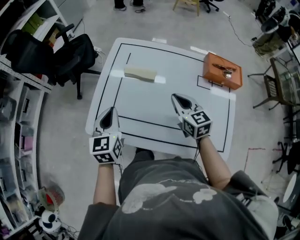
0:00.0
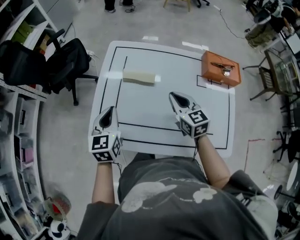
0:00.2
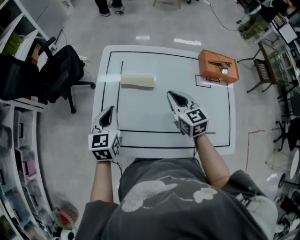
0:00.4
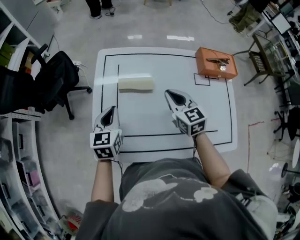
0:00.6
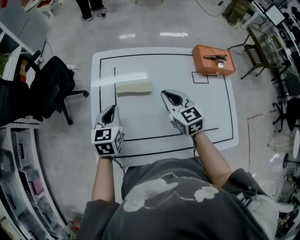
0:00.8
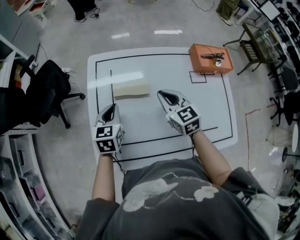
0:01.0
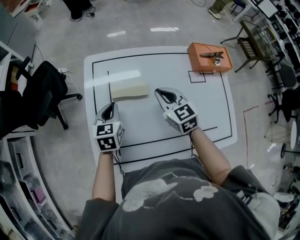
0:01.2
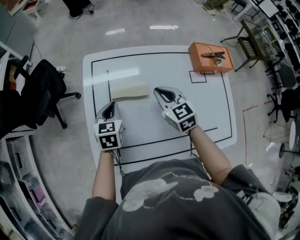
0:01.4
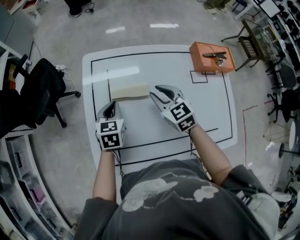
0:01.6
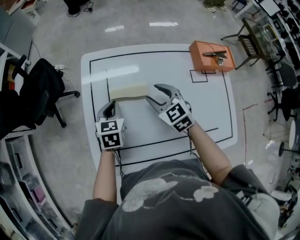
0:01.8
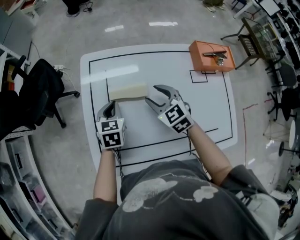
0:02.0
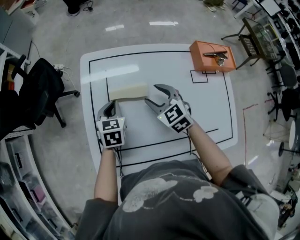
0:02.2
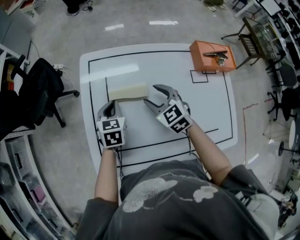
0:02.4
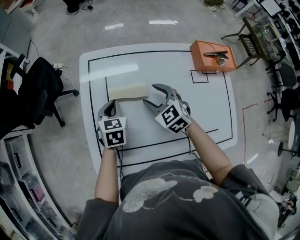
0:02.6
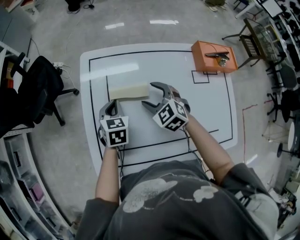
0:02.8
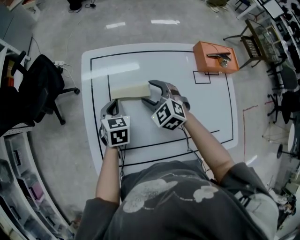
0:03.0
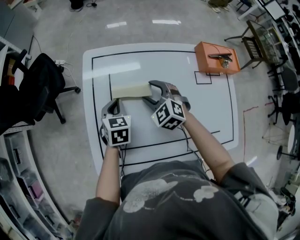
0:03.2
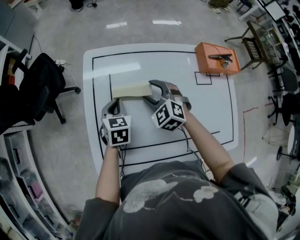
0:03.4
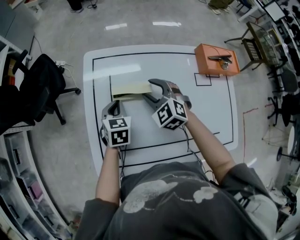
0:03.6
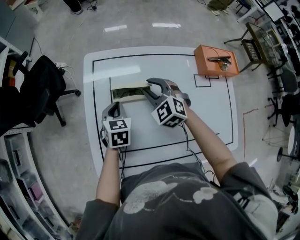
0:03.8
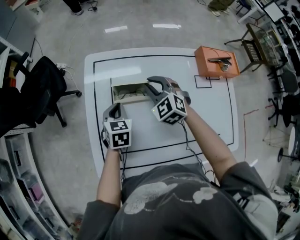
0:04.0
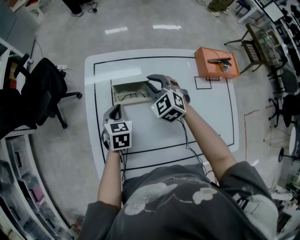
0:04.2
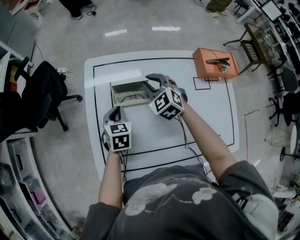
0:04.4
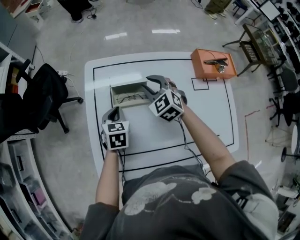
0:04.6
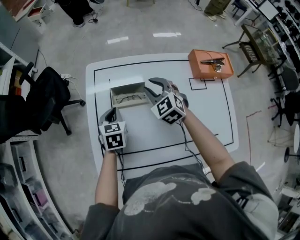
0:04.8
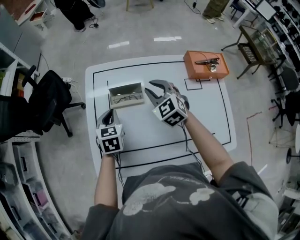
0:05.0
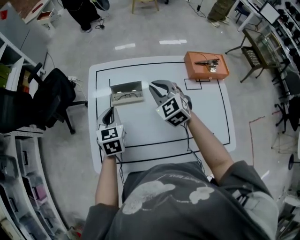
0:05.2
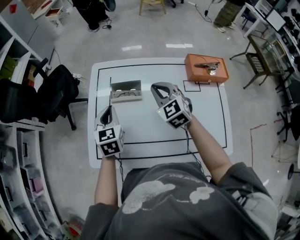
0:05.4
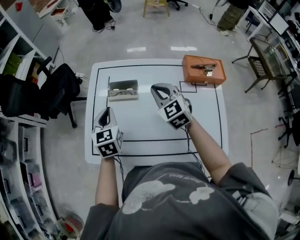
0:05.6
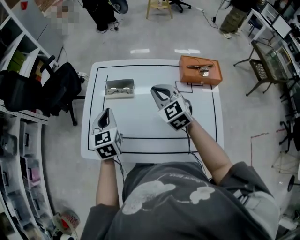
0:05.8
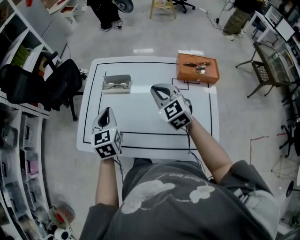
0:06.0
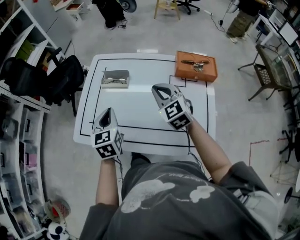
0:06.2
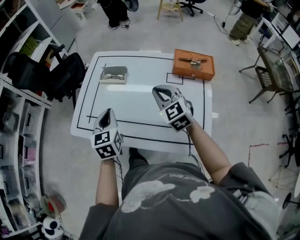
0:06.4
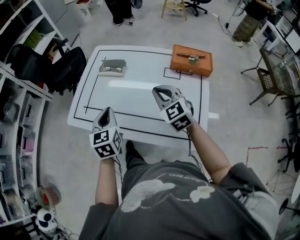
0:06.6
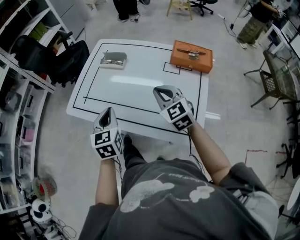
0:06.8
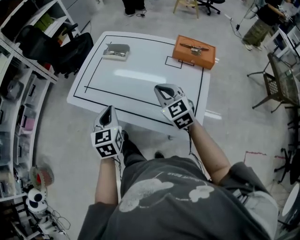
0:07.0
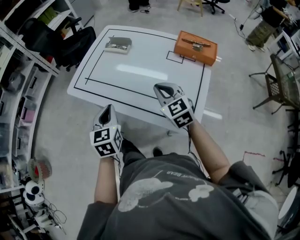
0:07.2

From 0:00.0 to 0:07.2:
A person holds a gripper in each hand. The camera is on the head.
From 0:00.0 to 0:01.4: The right gripper moves forward, about 10 cm. Meanwhile the left gripper moves forward and downward, some 20 cm, and turns by some 30 degrees.
From 0:01.4 to 0:02.8: The right gripper moves downward, roughly 5 cm, rotates some 30 degrees, and opens.
From 0:02.8 to 0:04.4: The right gripper shifts some 10 cm forward, and closes its fingers.
From 0:04.4 to 0:05.8: The left gripper heads upward and backward, covering some 20 cm, and changes its angle by some 30 degrees. Meanwhile the right gripper shifts some 20 cm backward, upward and to the right.
From 0:05.8 to 0:07.2: The two grippers go roughly 25 cm backward.

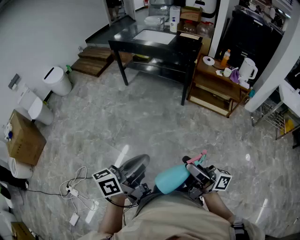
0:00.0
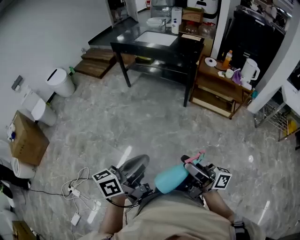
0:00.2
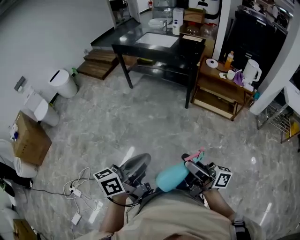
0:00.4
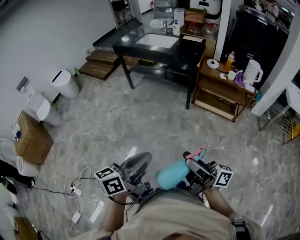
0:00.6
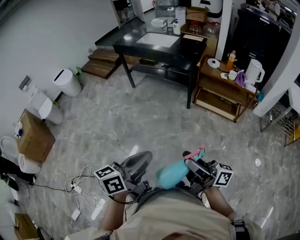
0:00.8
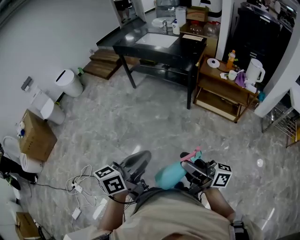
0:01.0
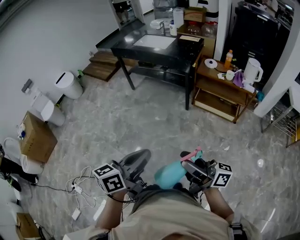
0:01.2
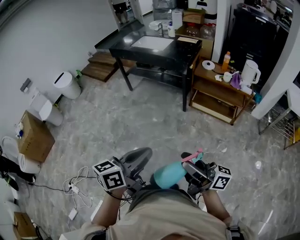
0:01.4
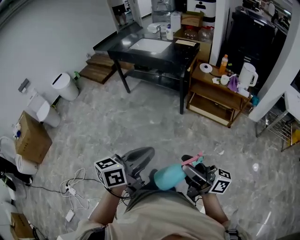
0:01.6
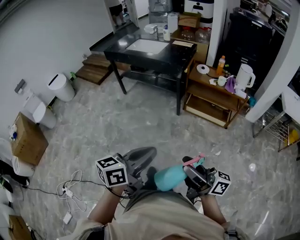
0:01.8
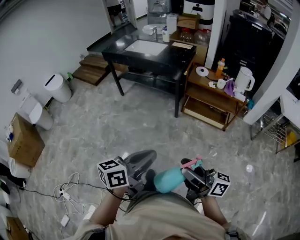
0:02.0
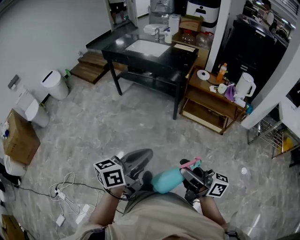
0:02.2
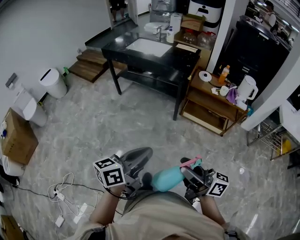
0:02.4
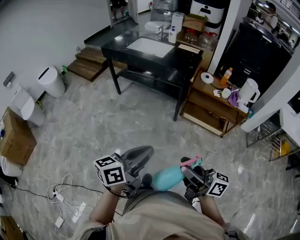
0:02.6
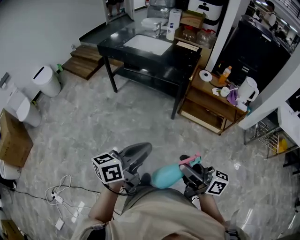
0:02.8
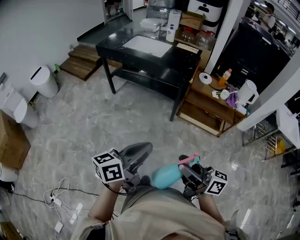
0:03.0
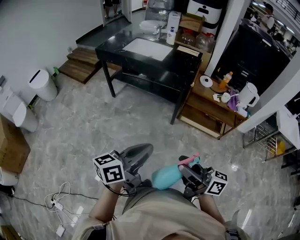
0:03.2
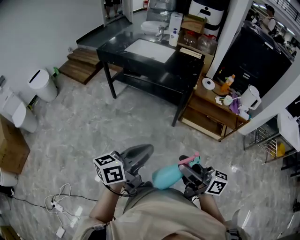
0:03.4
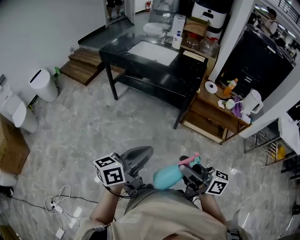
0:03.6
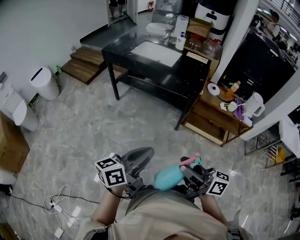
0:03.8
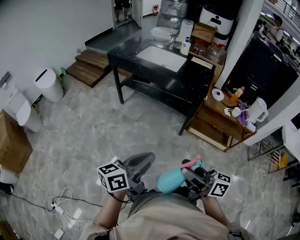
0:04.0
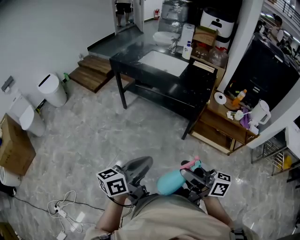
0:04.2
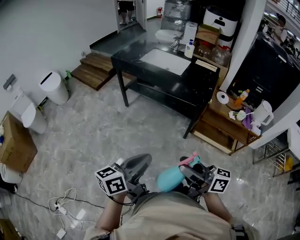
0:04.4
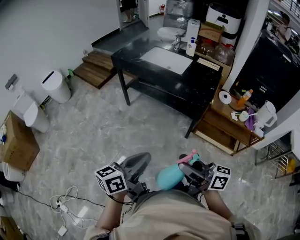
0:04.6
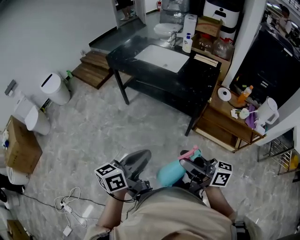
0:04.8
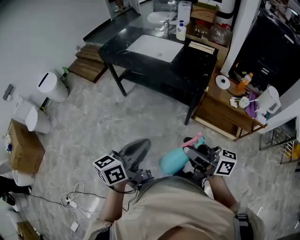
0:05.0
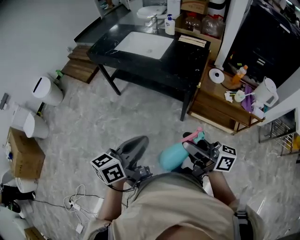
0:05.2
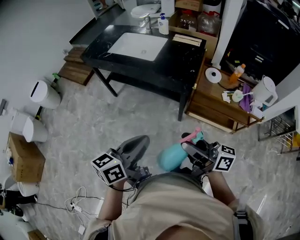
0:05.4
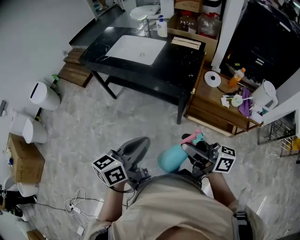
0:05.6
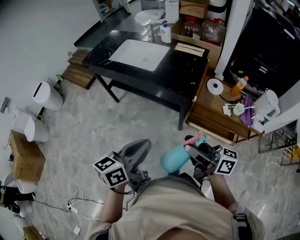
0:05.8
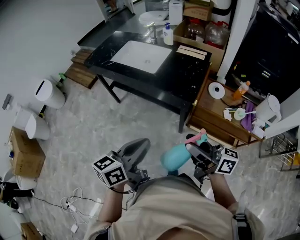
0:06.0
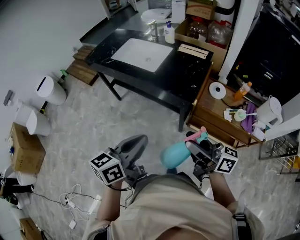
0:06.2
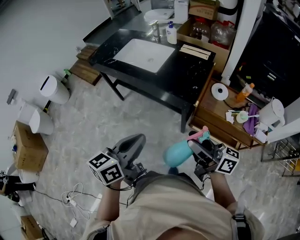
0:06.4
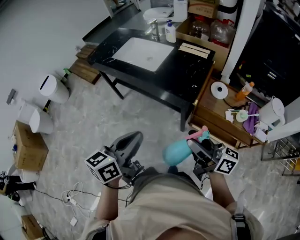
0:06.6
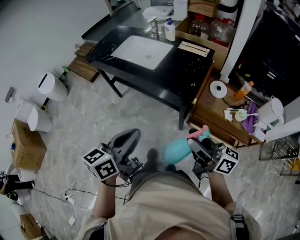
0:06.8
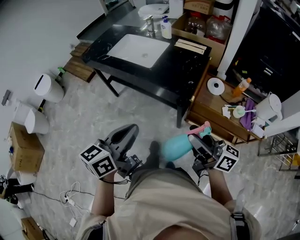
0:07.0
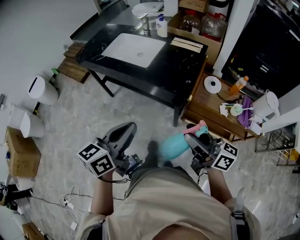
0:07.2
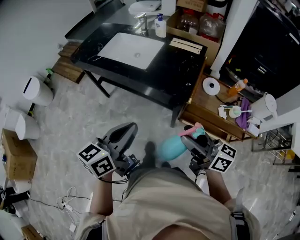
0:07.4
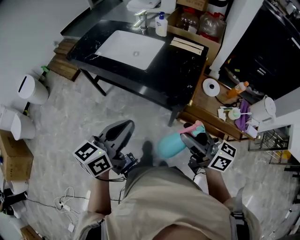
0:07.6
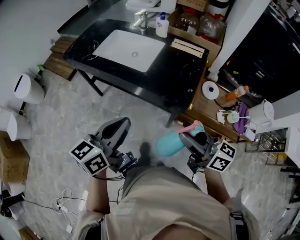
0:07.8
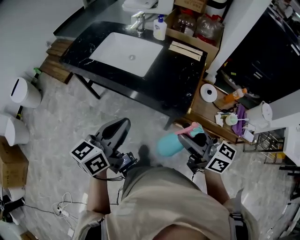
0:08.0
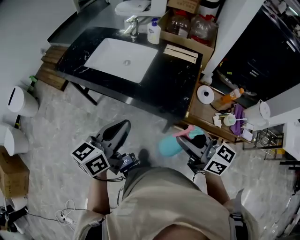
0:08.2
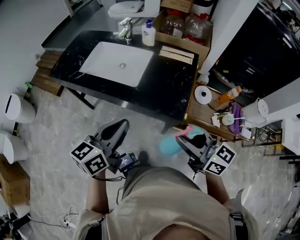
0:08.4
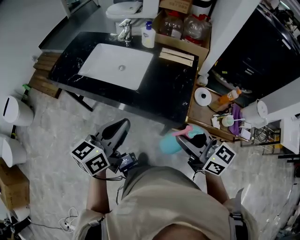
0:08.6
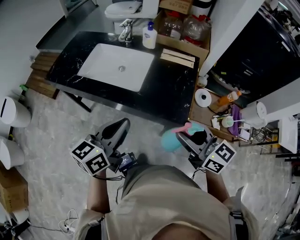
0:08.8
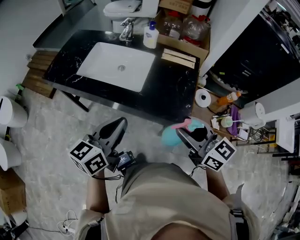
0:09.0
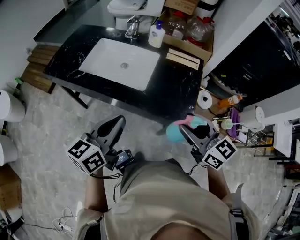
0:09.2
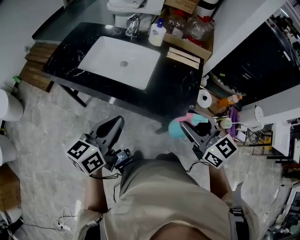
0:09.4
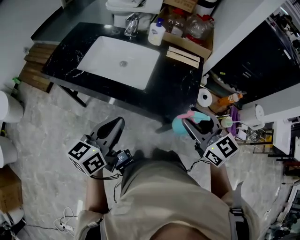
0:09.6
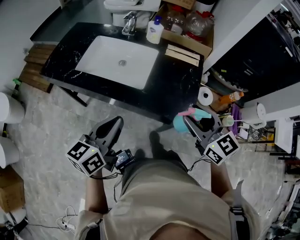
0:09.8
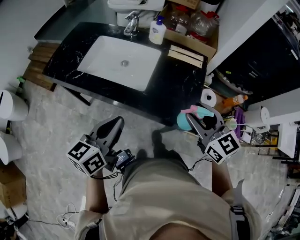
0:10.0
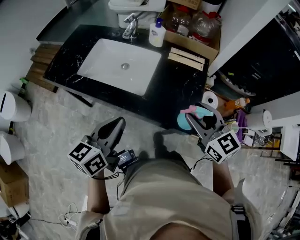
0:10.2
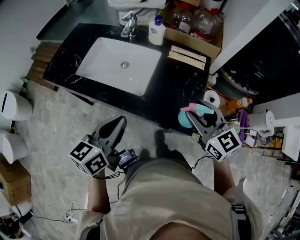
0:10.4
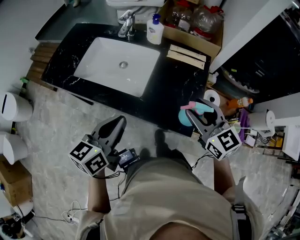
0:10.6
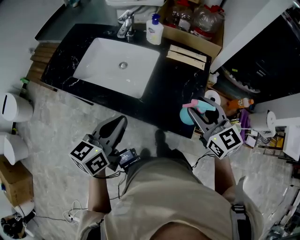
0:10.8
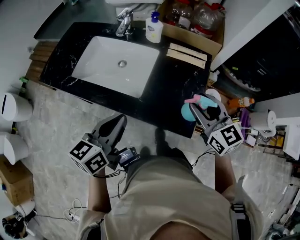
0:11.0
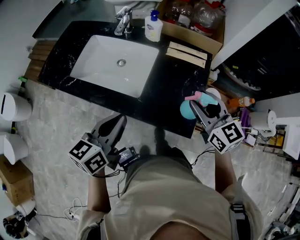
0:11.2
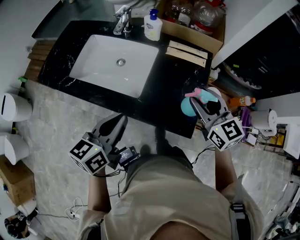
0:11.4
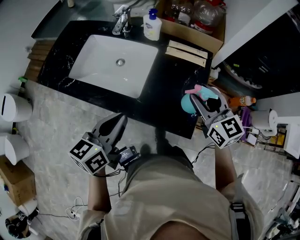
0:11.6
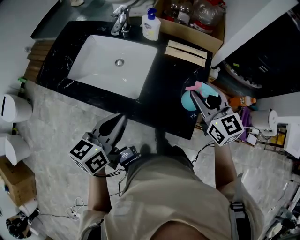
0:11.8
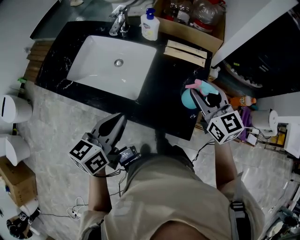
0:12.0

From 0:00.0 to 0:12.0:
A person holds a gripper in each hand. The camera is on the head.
From 0:00.0 to 0:01.6: Both grippers travel together to the right, roughly 15 cm.
From 0:01.6 to 0:03.0: The grippers both shift forward and to the left by about 20 cm.
From 0:03.0 to 0:04.4: The left gripper goes approximately 10 cm to the left and forward. The right gripper travels forward and to the left by roughly 15 cm.
From 0:04.4 to 0:06.0: Both grippers move to the right and forward, roughly 30 cm.
From 0:06.0 to 0:07.6: Both grippers move forward, roughly 10 cm.
From 0:07.6 to 0:09.0: The grippers both shift forward by some 15 cm. The right gripper turns by some 30 degrees.
From 0:09.0 to 0:10.4: The left gripper moves forward, approximately 5 cm; the right gripper heads forward, covering some 10 cm.
From 0:10.4 to 0:12.0: The left gripper is displaced forward by about 5 cm, while the right gripper shifts roughly 10 cm forward.

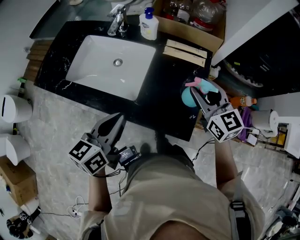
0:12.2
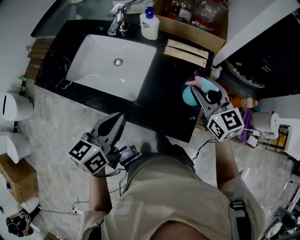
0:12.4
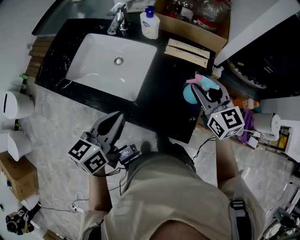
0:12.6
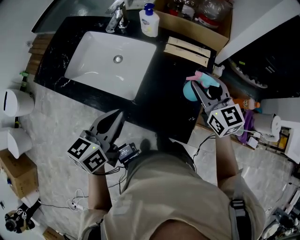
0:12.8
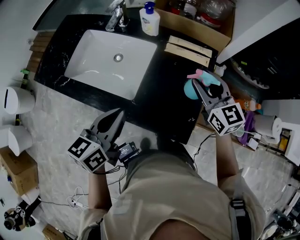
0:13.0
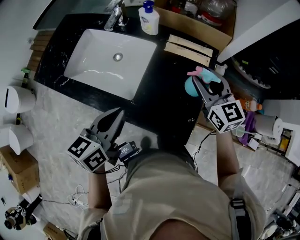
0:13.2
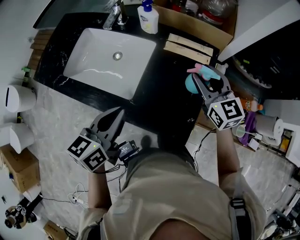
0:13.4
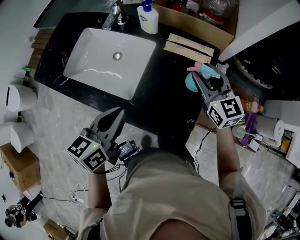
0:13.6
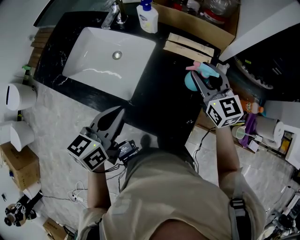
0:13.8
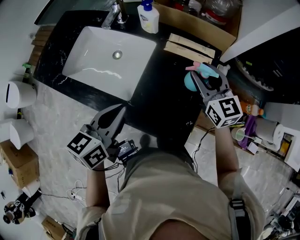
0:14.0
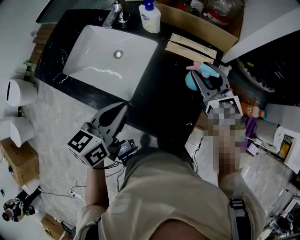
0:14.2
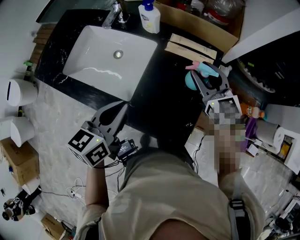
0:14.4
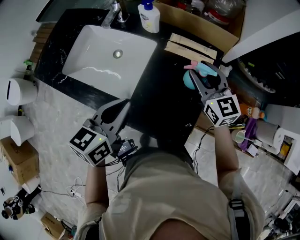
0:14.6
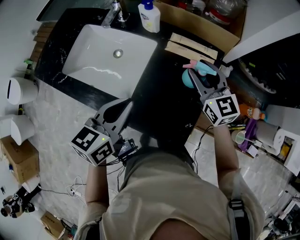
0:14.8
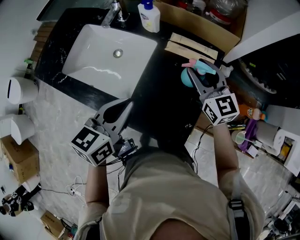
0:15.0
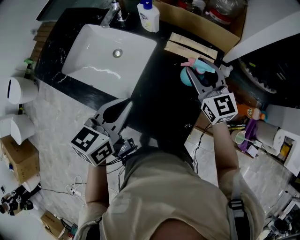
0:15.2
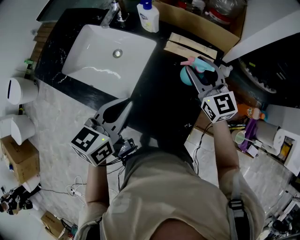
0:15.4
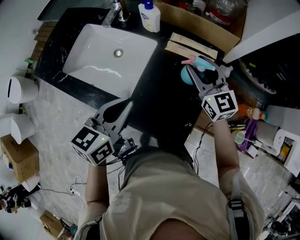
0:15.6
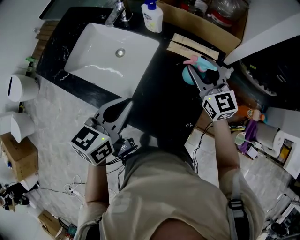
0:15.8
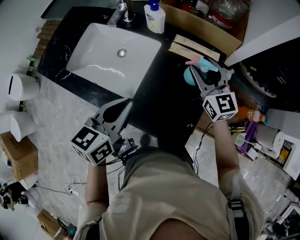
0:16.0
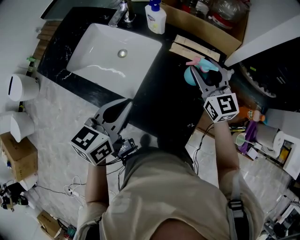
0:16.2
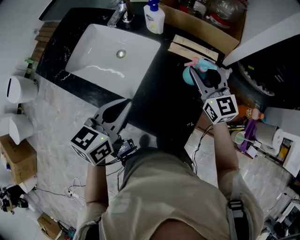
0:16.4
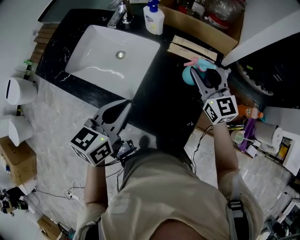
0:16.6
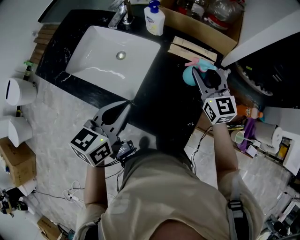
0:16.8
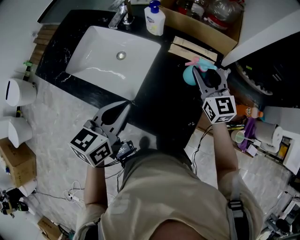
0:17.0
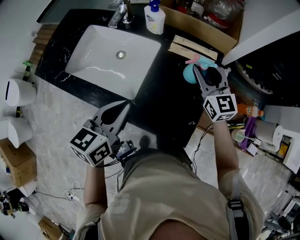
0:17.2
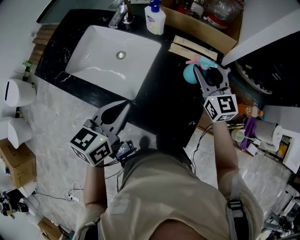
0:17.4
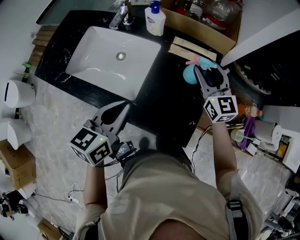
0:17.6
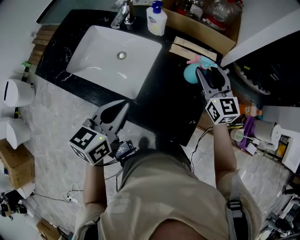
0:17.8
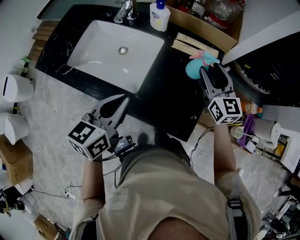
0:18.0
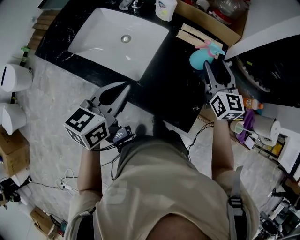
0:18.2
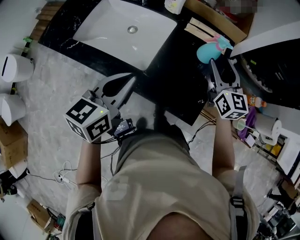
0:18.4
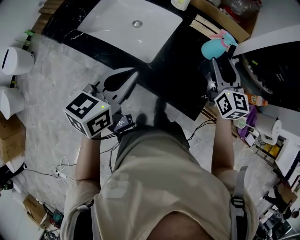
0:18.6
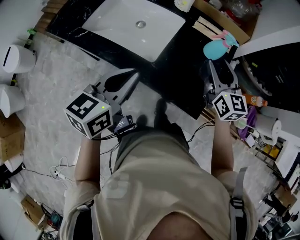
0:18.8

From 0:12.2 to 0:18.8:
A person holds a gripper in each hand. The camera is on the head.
From 0:12.2 to 0:13.8: The right gripper goes about 10 cm forward; the left gripper shifts by some 5 cm.
From 0:13.8 to 0:17.2: The grippers stay close to where they were, moving slightly.
From 0:17.2 to 0:18.8: The two grippers go some 10 cm backward.
